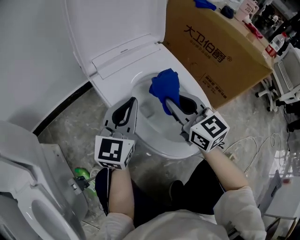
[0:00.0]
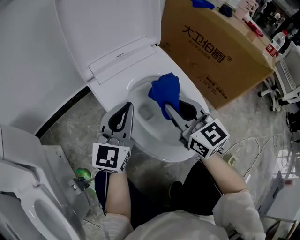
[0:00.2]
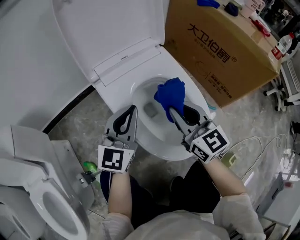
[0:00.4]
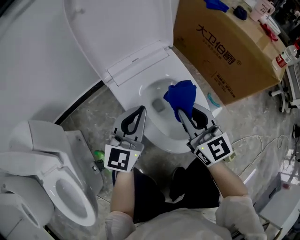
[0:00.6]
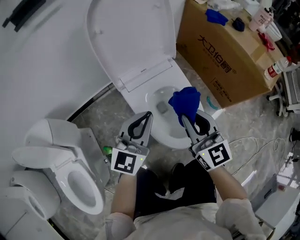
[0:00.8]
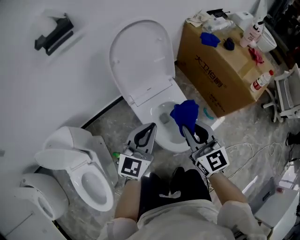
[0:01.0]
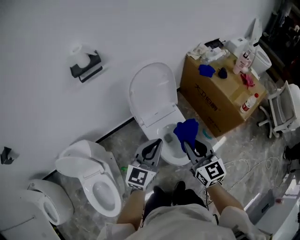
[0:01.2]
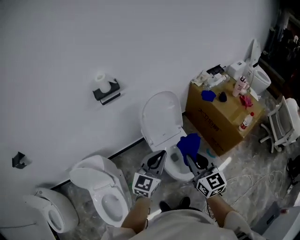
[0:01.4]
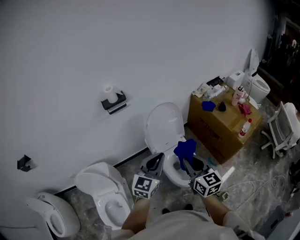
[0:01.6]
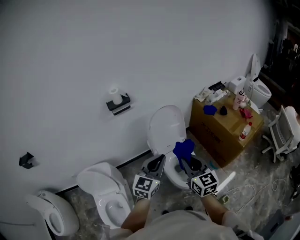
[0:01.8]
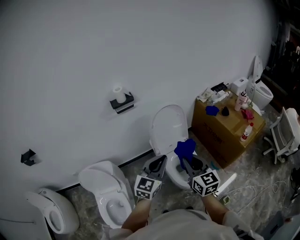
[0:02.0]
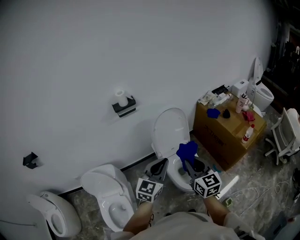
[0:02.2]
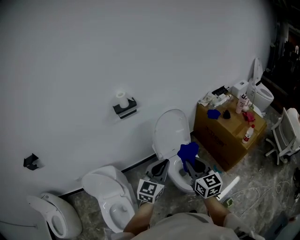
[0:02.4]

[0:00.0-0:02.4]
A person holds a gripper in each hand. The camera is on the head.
0:00.0 to 0:01.2: The two grippers go roughly 50 cm upward.
0:01.2 to 0:02.4: The left gripper is displaced upward and backward by approximately 20 cm. The right gripper moves upward, backward and to the left, roughly 20 cm.

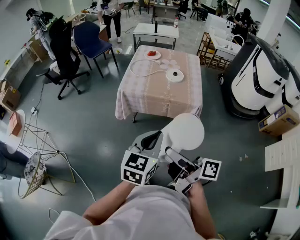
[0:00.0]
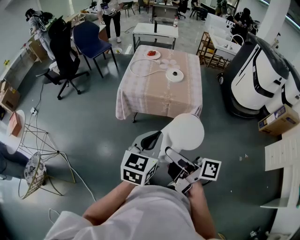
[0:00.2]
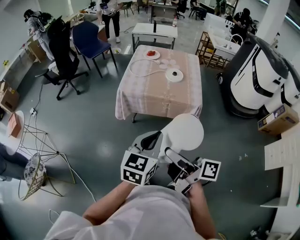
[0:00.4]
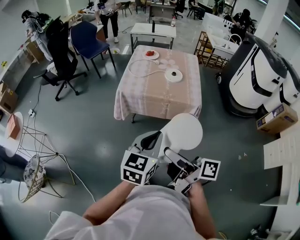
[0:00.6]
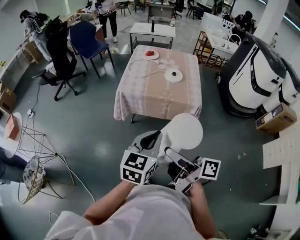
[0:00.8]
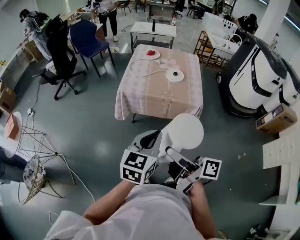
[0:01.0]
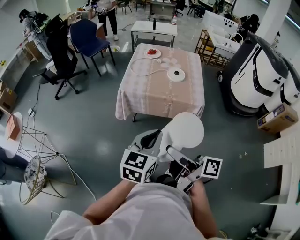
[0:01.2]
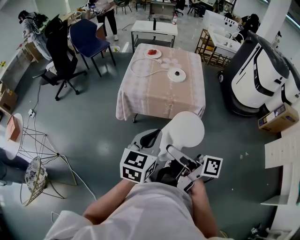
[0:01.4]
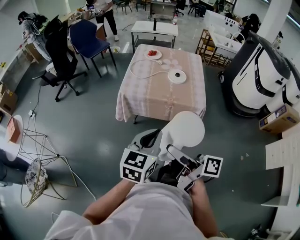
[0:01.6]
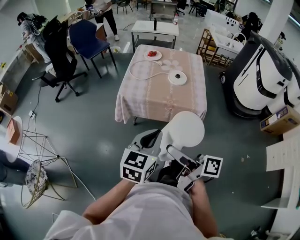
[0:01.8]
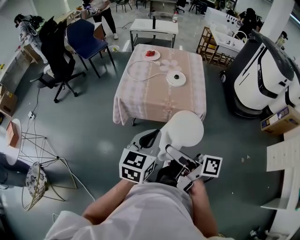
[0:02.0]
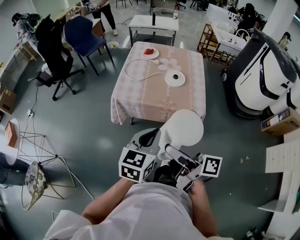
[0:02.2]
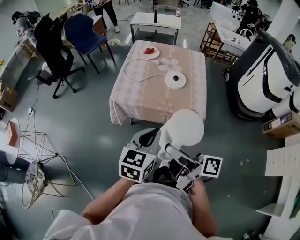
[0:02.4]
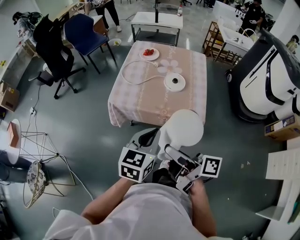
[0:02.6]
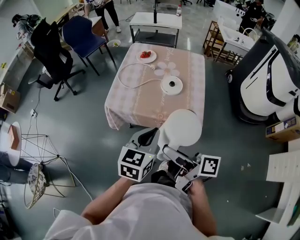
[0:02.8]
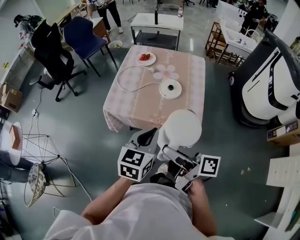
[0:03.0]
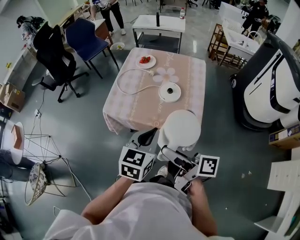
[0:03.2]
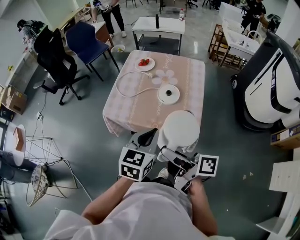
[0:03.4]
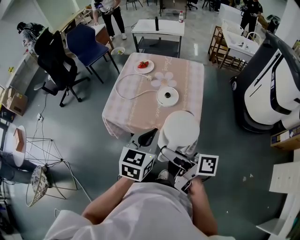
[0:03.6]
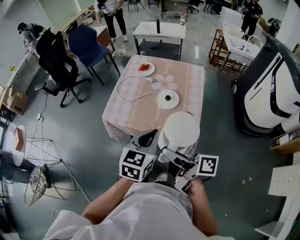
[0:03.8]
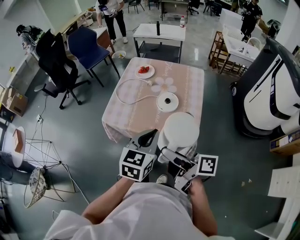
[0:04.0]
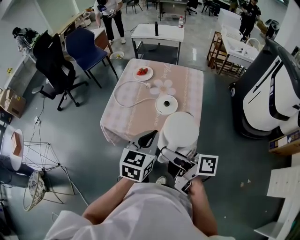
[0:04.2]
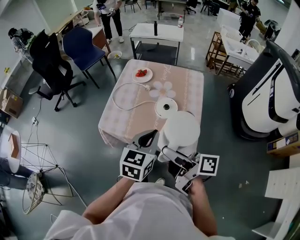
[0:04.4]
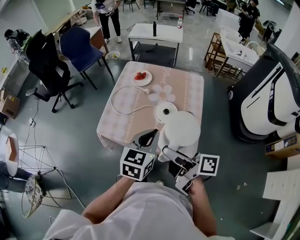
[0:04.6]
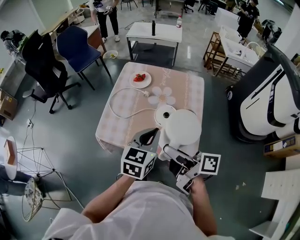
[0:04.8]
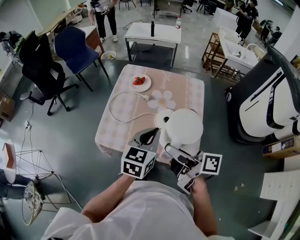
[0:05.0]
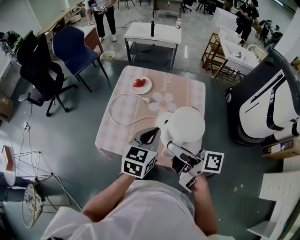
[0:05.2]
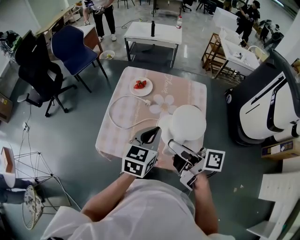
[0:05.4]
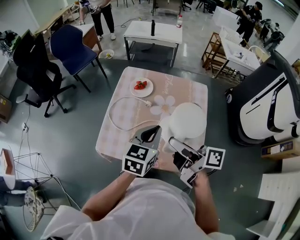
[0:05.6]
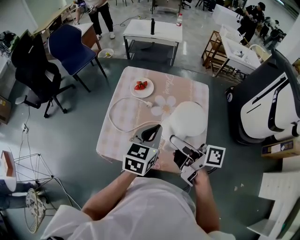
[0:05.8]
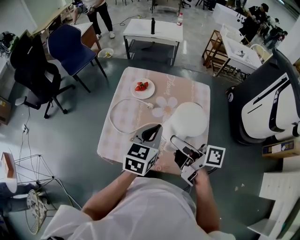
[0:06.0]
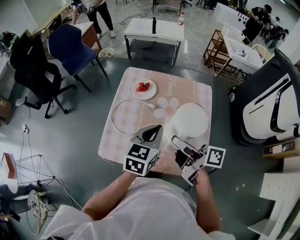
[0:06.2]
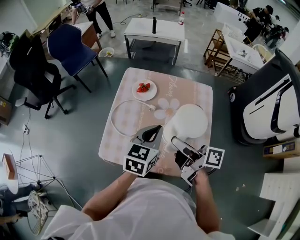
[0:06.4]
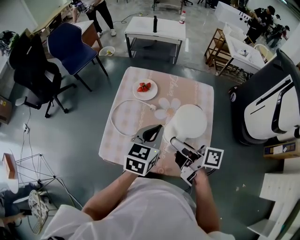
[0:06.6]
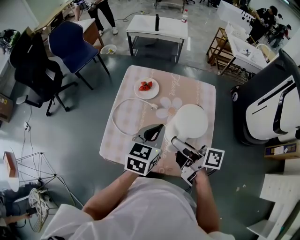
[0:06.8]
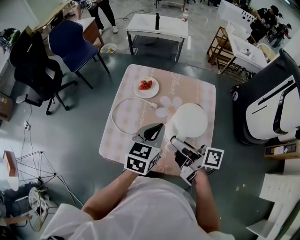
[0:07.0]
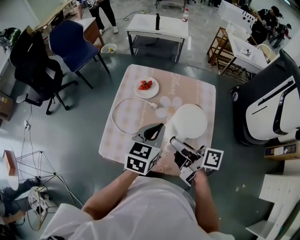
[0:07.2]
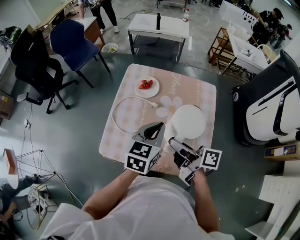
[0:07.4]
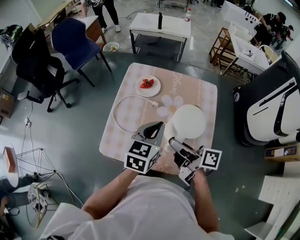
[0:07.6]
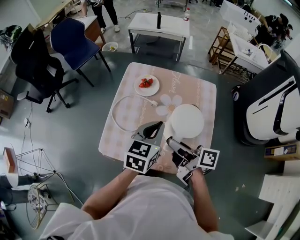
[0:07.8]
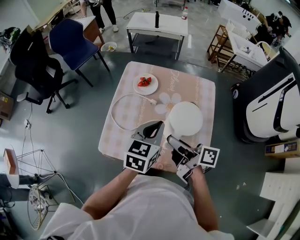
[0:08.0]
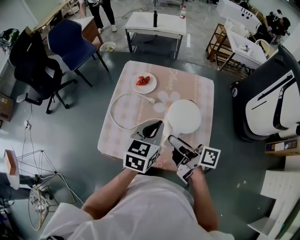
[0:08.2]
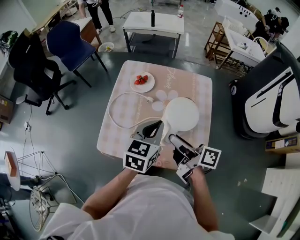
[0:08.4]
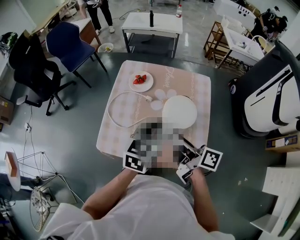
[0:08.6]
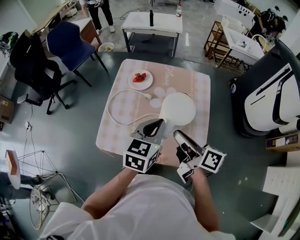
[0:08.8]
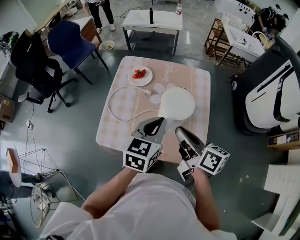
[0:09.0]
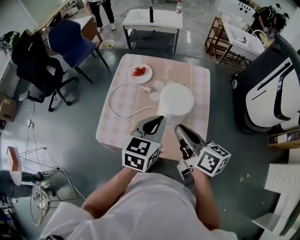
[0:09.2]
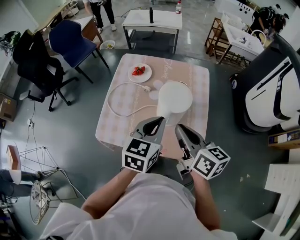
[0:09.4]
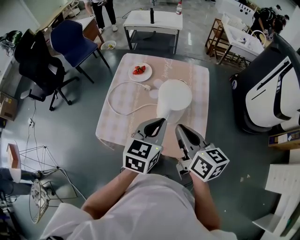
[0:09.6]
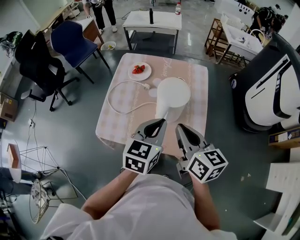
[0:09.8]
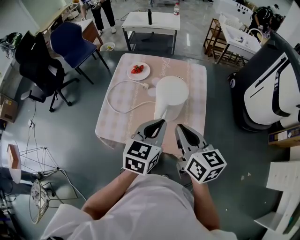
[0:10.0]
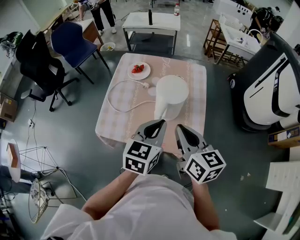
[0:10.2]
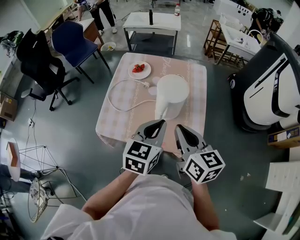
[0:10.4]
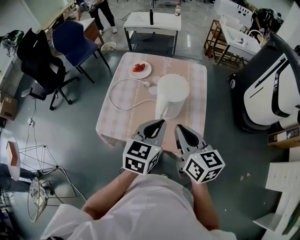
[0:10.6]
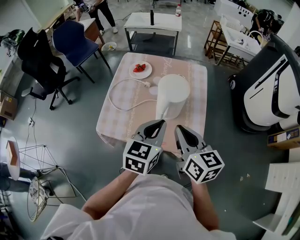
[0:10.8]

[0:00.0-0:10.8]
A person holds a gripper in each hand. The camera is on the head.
0:00.0 to 0:01.6: Both grippers move forward, approximately 5 cm.
0:01.6 to 0:03.0: The grippers both shift forward and to the right by some 25 cm.
0:03.0 to 0:04.6: The grippers both shift forward and to the right by roughly 15 cm.
0:04.6 to 0:06.2: The grippers both shift forward by roughly 20 cm.
0:06.2 to 0:07.8: The grippers stay close to where they were, moving slightly.
0:07.8 to 0:09.2: The right gripper moves to the right, some 5 cm, changes its angle by about 30 degrees, and closes. Meanwhile the left gripper shifts about 5 cm backward.
0:09.2 to 0:10.8: The two grippers go about 5 cm backward. The right gripper rotates about 20 degrees.

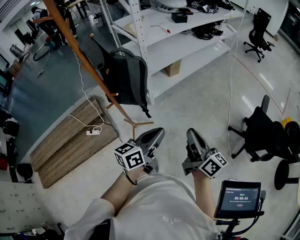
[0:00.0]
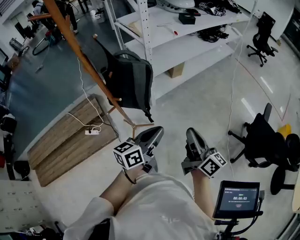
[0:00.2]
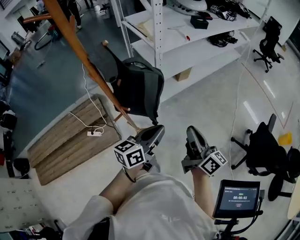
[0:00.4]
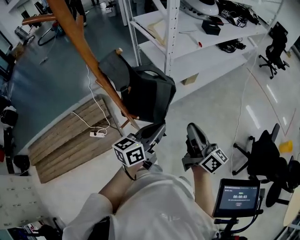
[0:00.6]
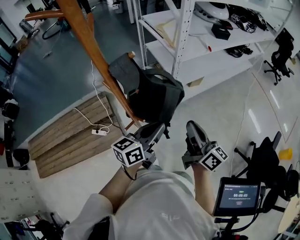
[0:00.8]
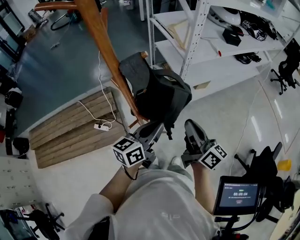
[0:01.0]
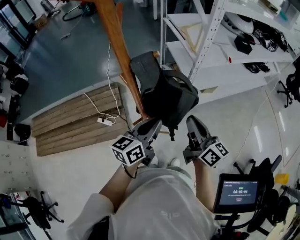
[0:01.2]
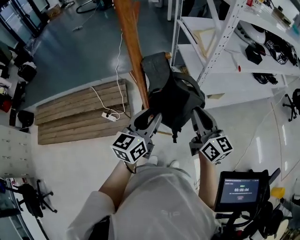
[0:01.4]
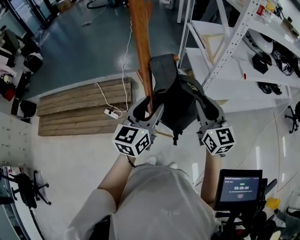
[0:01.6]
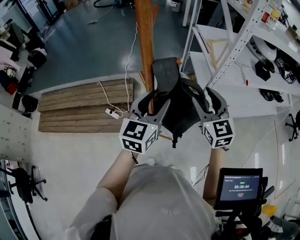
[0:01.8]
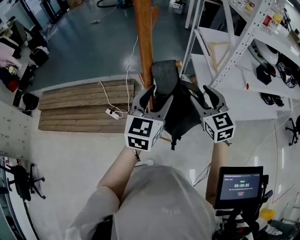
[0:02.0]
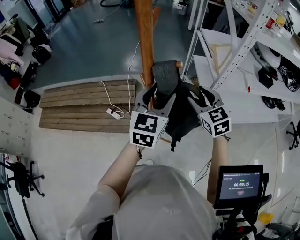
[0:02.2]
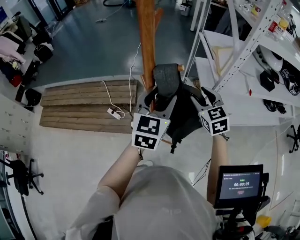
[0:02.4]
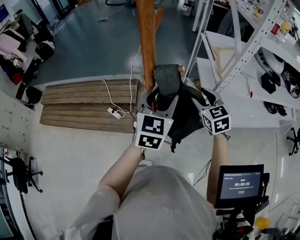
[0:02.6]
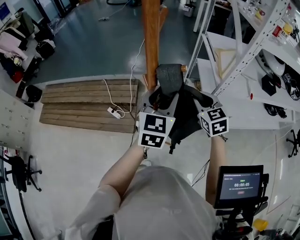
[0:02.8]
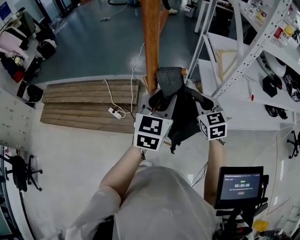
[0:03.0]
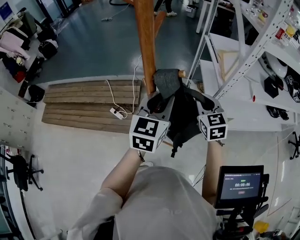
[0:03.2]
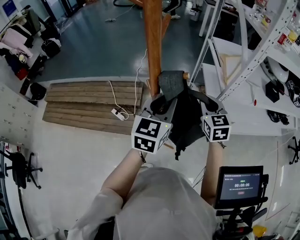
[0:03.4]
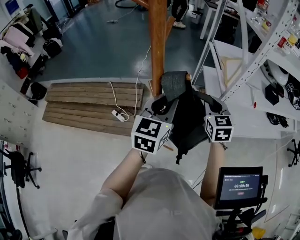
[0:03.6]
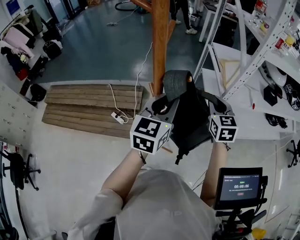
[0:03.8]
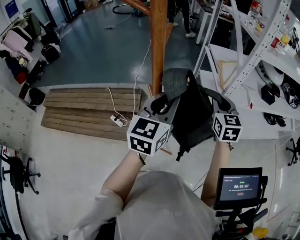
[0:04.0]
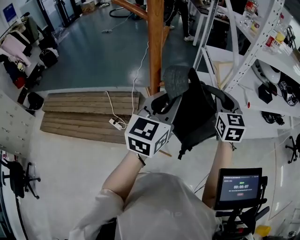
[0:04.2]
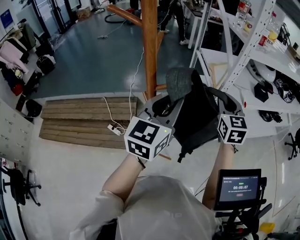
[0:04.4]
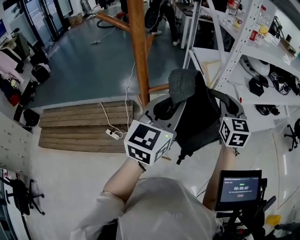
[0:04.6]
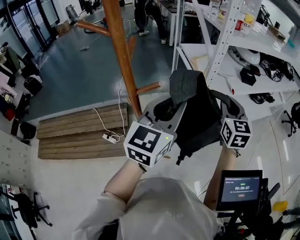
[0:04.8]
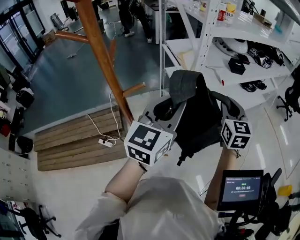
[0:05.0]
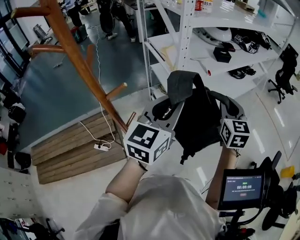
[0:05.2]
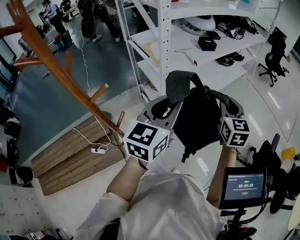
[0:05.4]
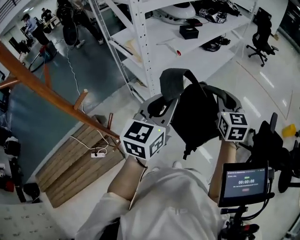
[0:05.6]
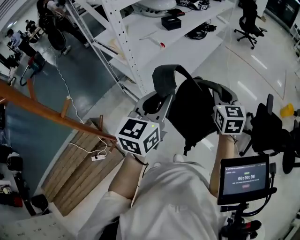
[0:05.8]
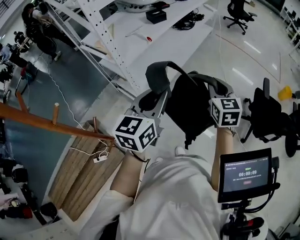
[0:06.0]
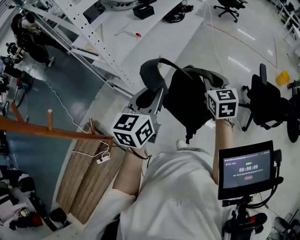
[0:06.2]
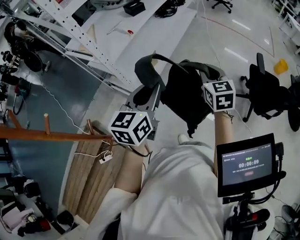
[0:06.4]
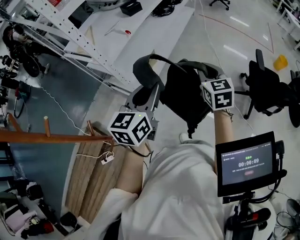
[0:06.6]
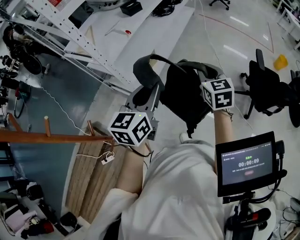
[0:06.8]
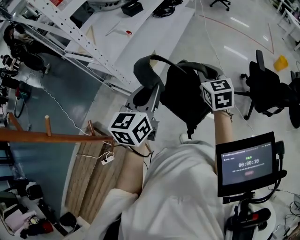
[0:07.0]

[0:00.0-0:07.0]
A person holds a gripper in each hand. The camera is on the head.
0:00.0 to 0:01.4: The right gripper moves about 40 cm, and rotates roughly 30 degrees. The left gripper moves about 35 cm, swivels some 40 degrees, and opens up.
0:01.4 to 0:02.8: The right gripper is displaced forward by approximately 15 cm, rotates roughly 40 degrees, and opens and closes again, while the left gripper moves forward and upward, some 10 cm, and swivels roughly 30 degrees.
0:02.8 to 0:04.2: The right gripper goes about 15 cm upward and to the right, and turns by roughly 20 degrees. Meanwhile the left gripper travels upward by some 10 cm, and closes.
0:04.2 to 0:05.6: The right gripper moves some 35 cm, and swivels roughly 40 degrees. Meanwhile the left gripper shifts by some 25 cm, and rotates roughly 40 degrees.
0:05.6 to 0:07.0: The two grippers go approximately 10 cm downward and to the right.

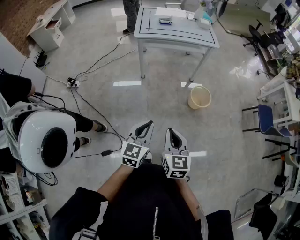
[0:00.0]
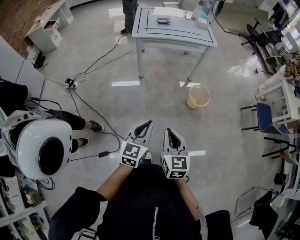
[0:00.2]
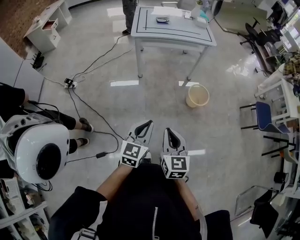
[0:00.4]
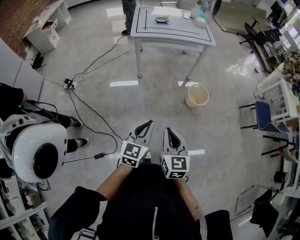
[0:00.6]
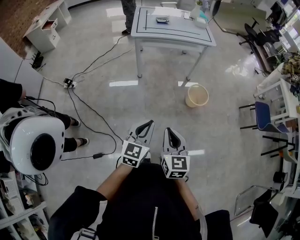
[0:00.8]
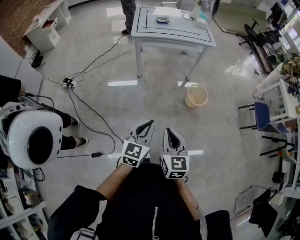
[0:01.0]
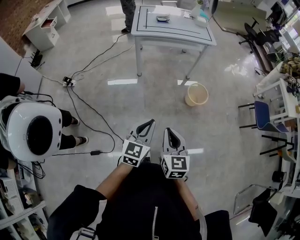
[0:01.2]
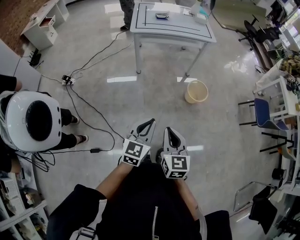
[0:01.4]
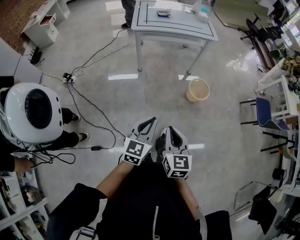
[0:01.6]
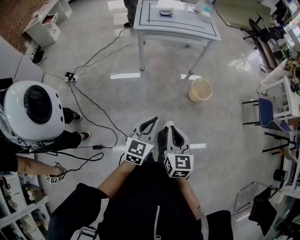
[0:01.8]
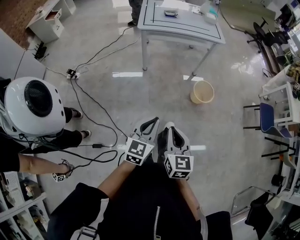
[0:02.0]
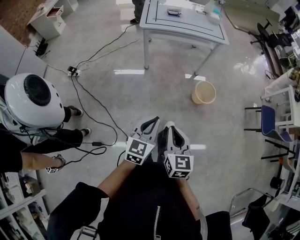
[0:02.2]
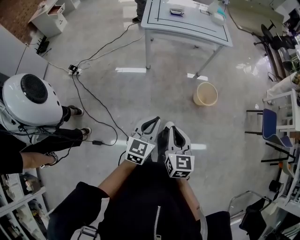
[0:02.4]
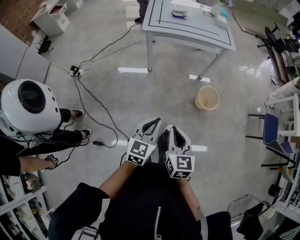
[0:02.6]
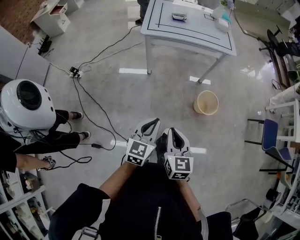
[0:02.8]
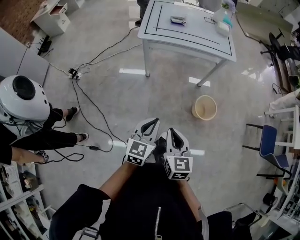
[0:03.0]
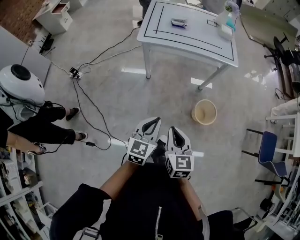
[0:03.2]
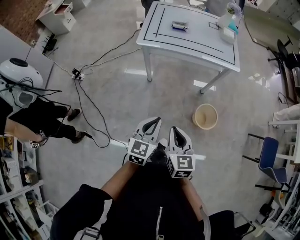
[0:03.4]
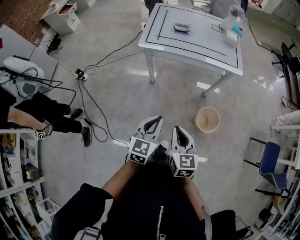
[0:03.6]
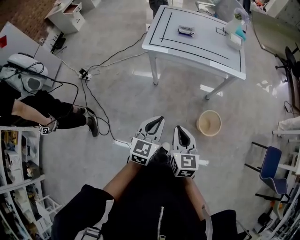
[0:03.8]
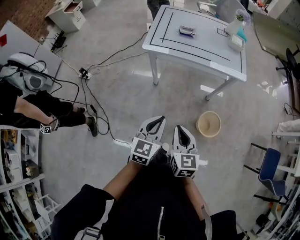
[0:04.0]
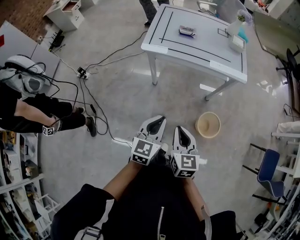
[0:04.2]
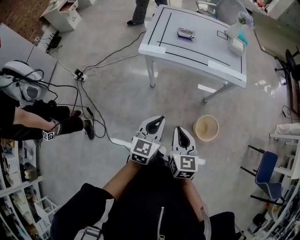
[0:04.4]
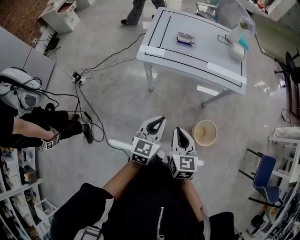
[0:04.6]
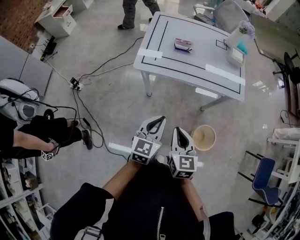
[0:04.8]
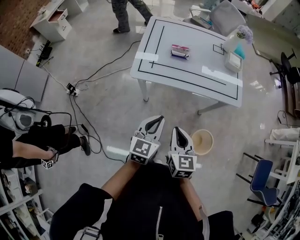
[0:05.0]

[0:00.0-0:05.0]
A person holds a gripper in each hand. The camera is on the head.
0:00.0 to 0:01.6: There are only small adjustments of the grippers.
0:01.6 to 0:03.4: Both grippers move forward, roughly 30 cm.
0:03.4 to 0:05.0: The two grippers go about 25 cm forward.
